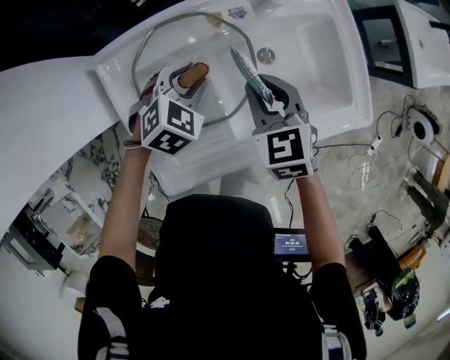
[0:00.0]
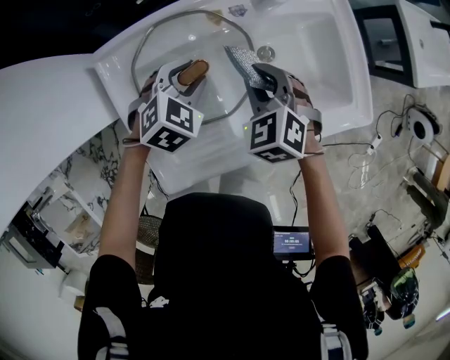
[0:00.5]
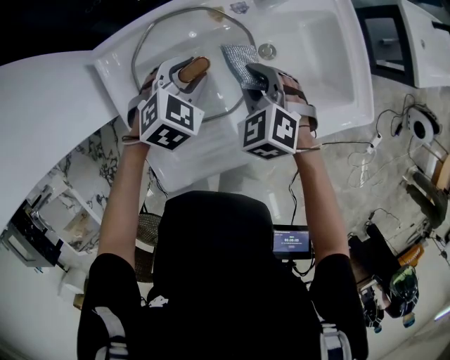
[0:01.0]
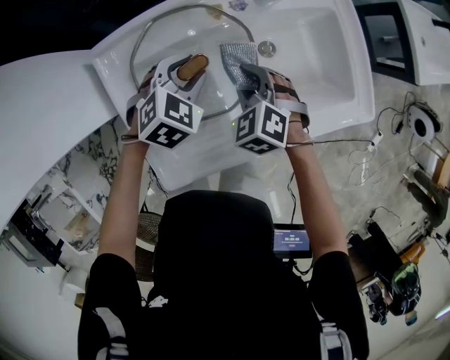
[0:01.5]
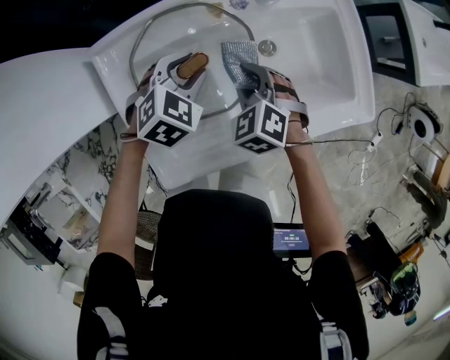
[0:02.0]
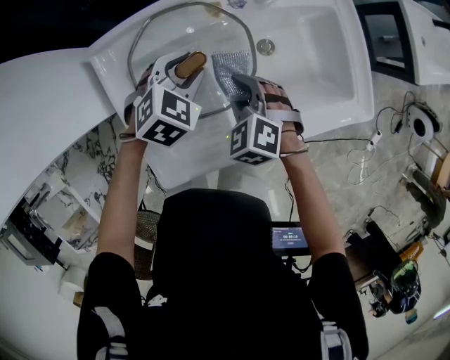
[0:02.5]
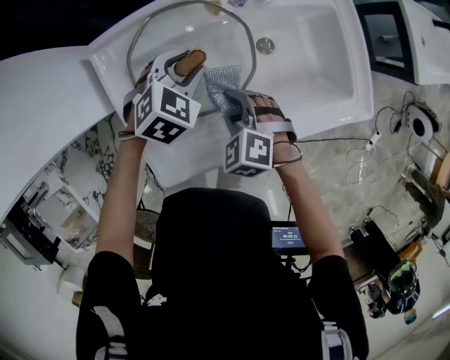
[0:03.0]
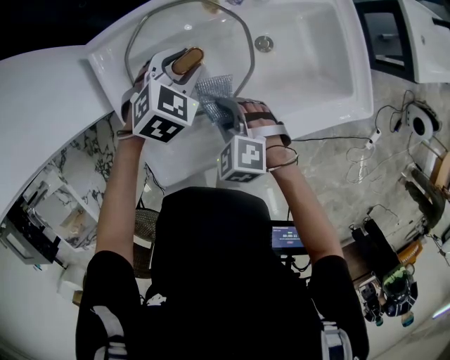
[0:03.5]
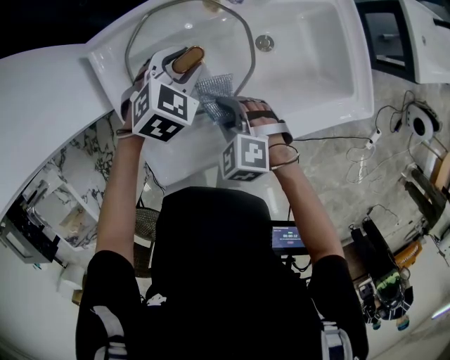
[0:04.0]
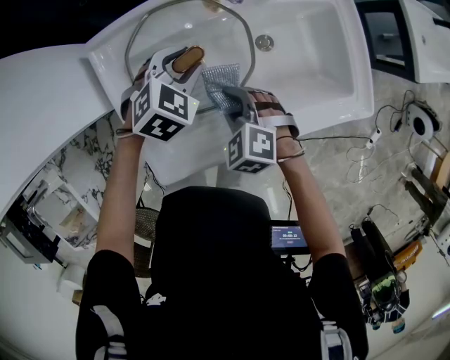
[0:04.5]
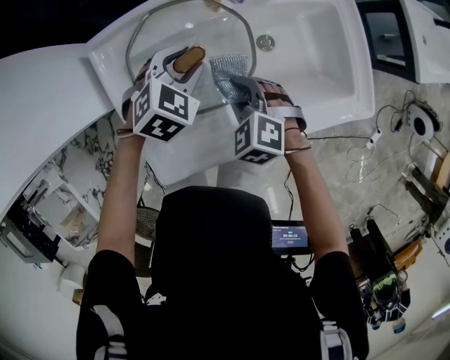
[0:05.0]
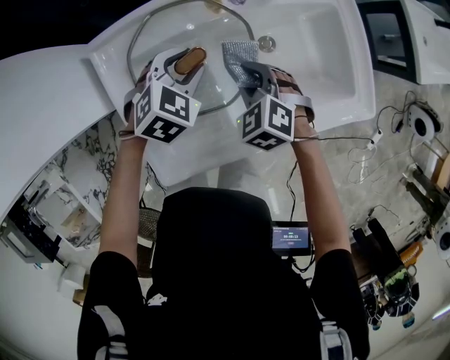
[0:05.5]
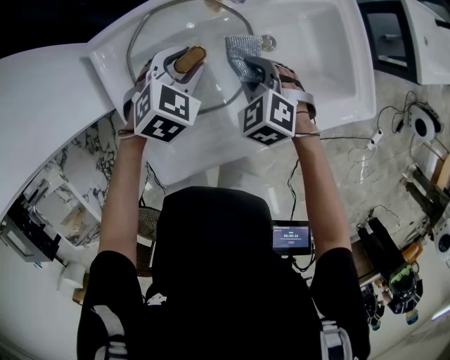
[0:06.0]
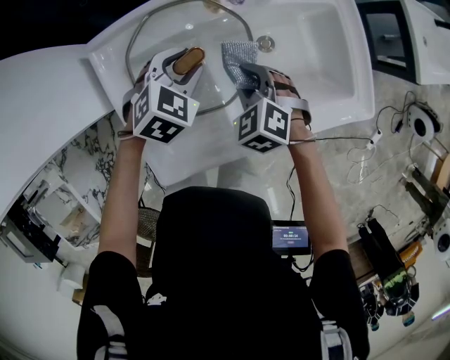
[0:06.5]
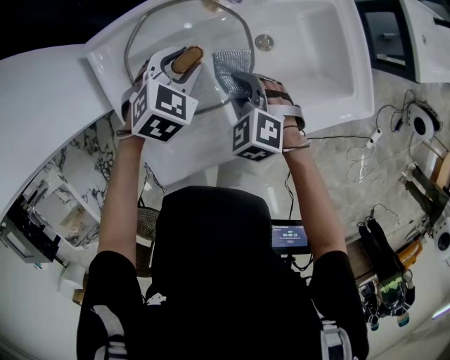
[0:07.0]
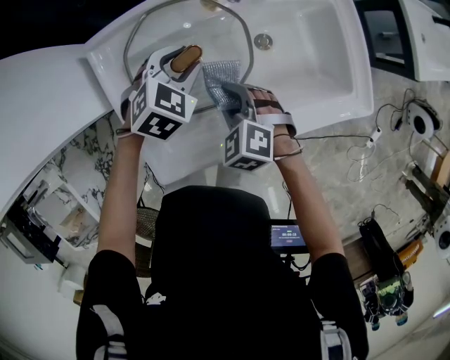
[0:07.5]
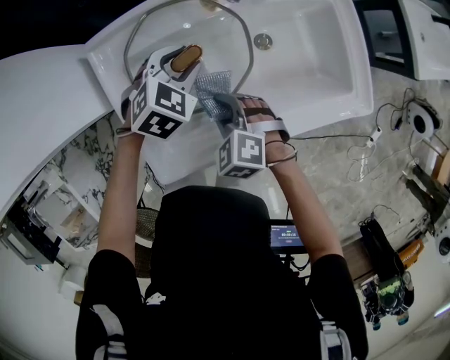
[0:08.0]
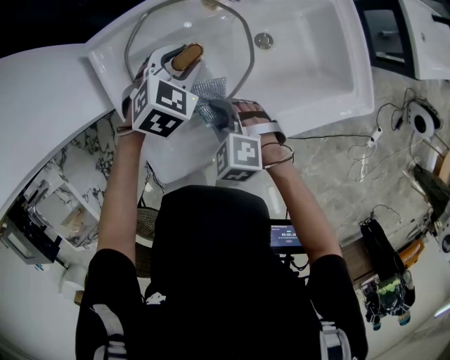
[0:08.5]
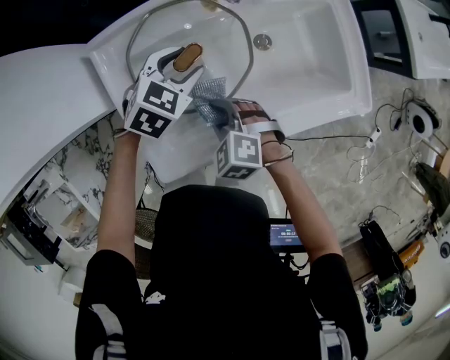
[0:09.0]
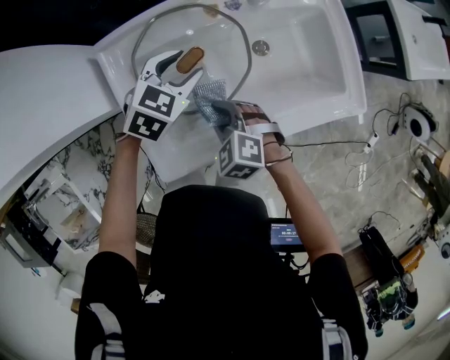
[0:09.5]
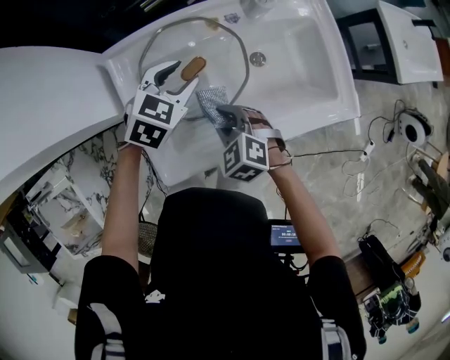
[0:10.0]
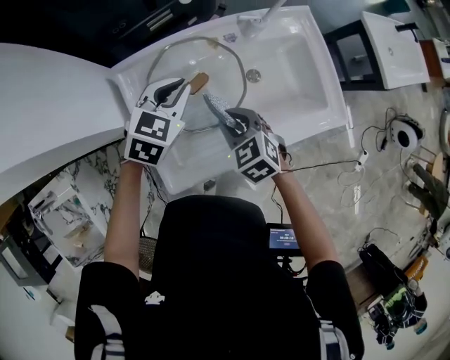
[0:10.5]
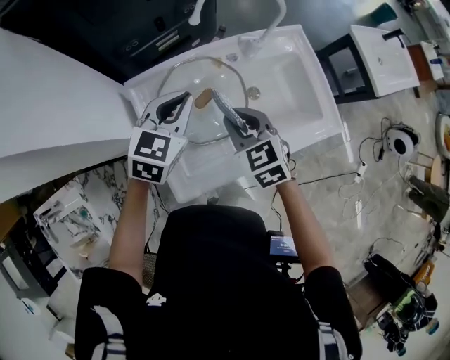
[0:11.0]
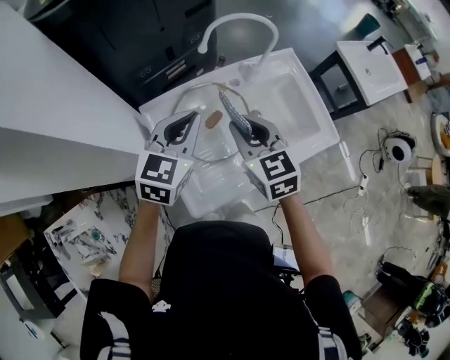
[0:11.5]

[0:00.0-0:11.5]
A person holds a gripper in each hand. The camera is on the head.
0:00.0 to 0:02.0: The right gripper moves downward, about 10 cm, and changes its angle by some 30 degrees.
0:02.0 to 0:04.0: The right gripper travels backward by some 10 cm.
0:04.0 to 0:06.0: The right gripper shifts some 10 cm forward and to the right.
0:06.0 to 0:07.5: The right gripper travels backward by about 5 cm.
0:07.5 to 0:09.5: The right gripper moves roughly 5 cm.
0:09.5 to 0:11.5: The two grippers go roughly 25 cm upward. The right gripper tips its fingers upward by about 30 degrees, while the left gripper changes its angle by approximately 30 degrees, and closes up.

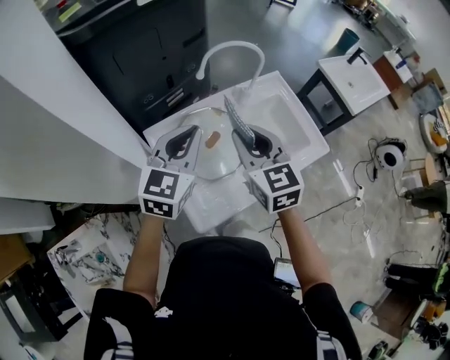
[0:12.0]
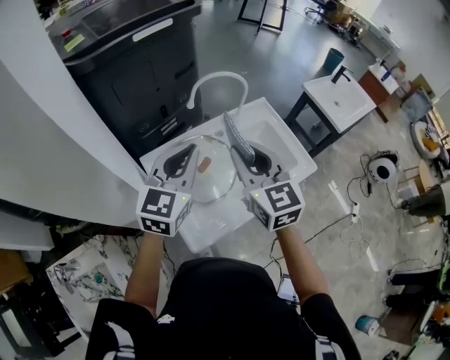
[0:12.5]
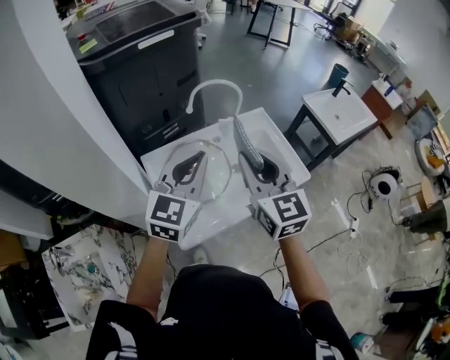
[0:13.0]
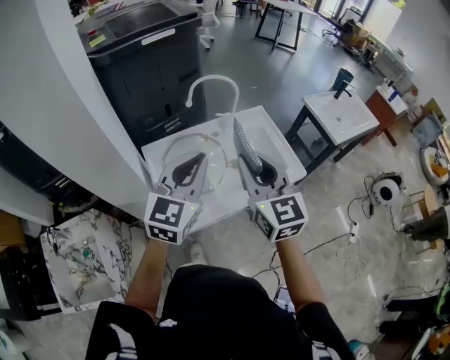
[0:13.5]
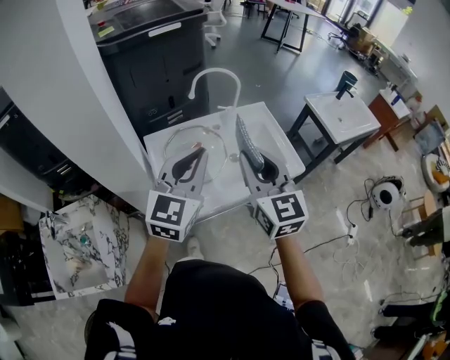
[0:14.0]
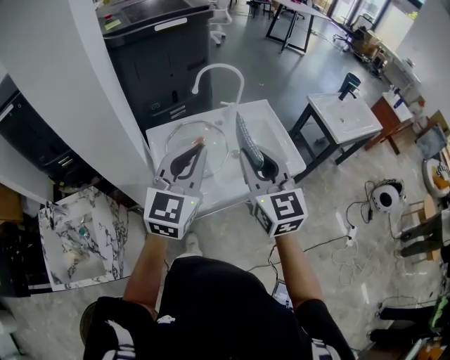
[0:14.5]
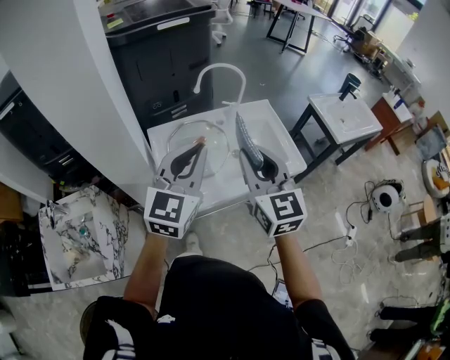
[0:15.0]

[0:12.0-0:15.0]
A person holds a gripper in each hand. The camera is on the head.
0:12.0 to 0:13.5: Both grippers travel together backward, to the right and upward, approximately 20 cm.
0:13.5 to 0:15.0: The left gripper heads backward, covering approximately 5 cm.

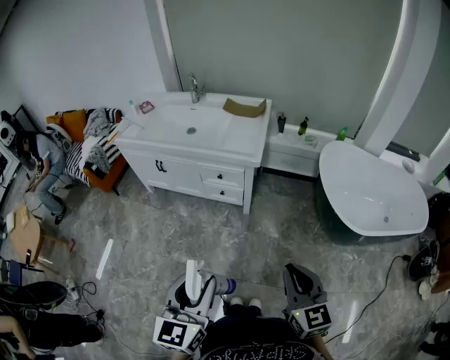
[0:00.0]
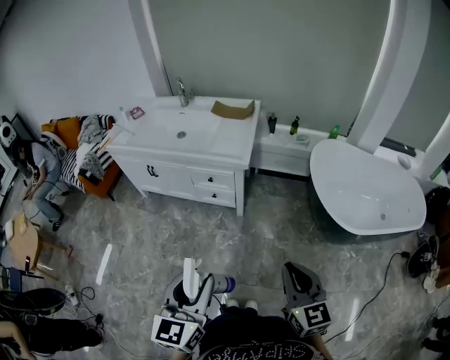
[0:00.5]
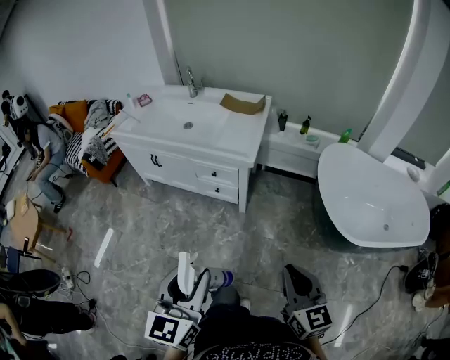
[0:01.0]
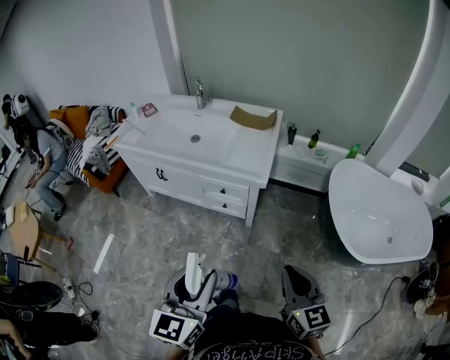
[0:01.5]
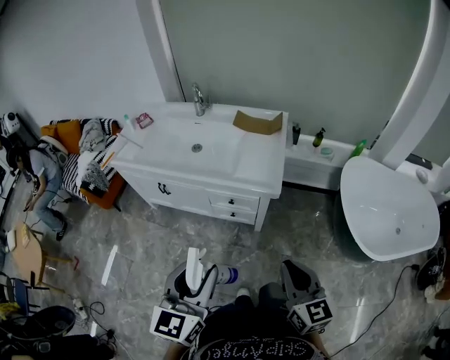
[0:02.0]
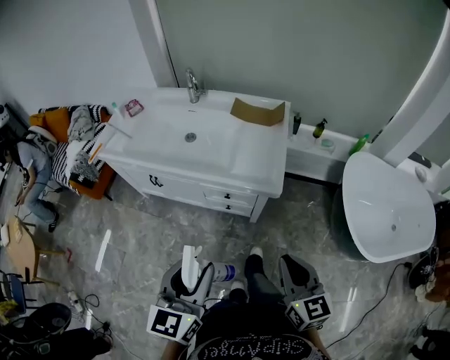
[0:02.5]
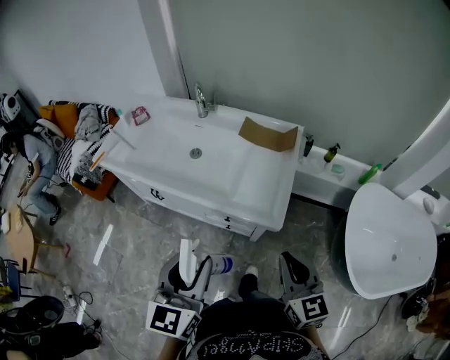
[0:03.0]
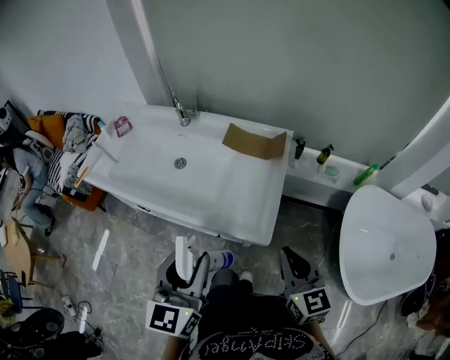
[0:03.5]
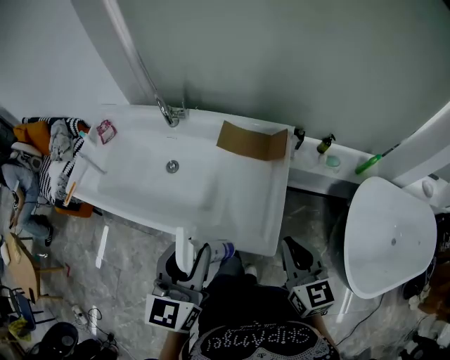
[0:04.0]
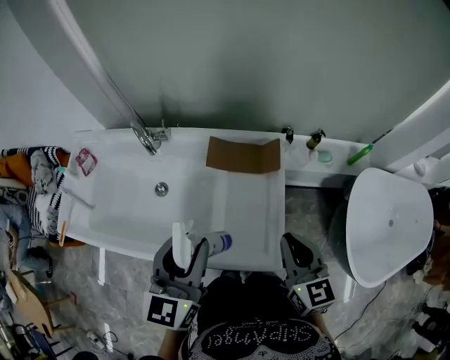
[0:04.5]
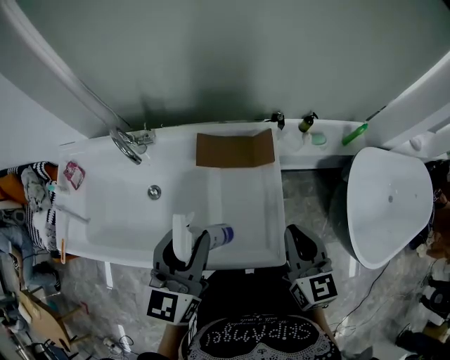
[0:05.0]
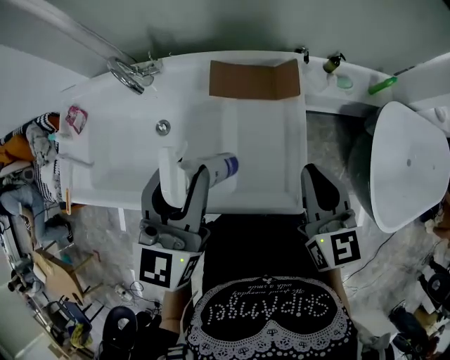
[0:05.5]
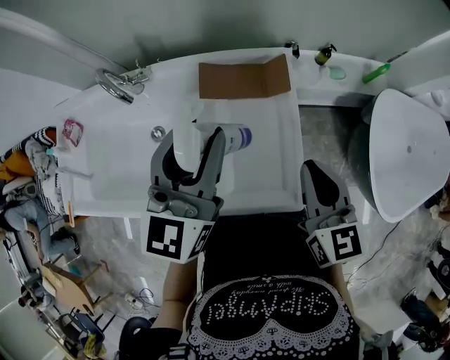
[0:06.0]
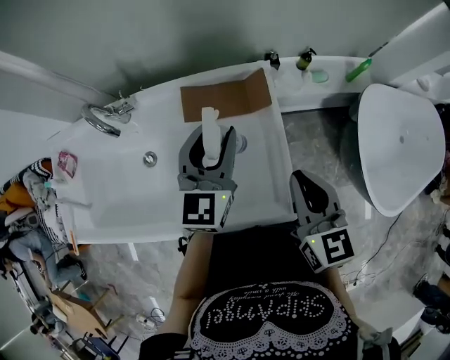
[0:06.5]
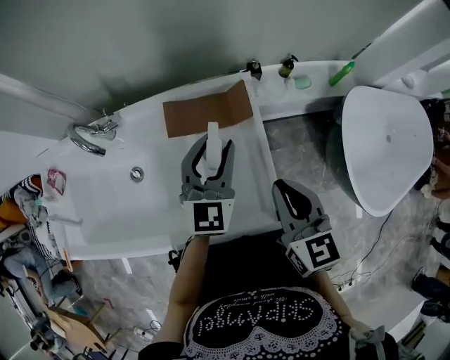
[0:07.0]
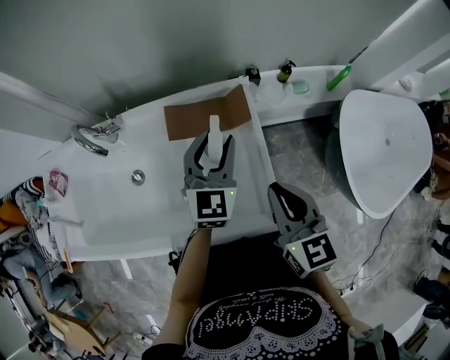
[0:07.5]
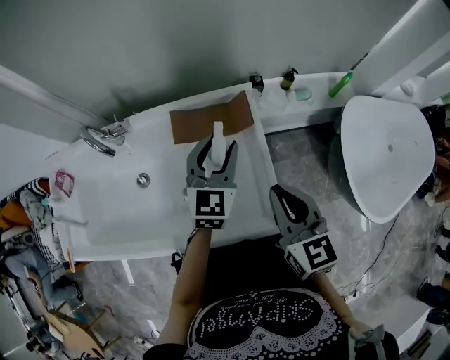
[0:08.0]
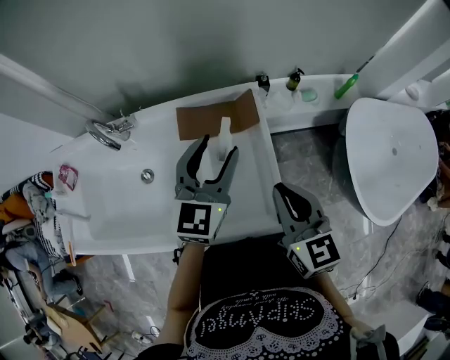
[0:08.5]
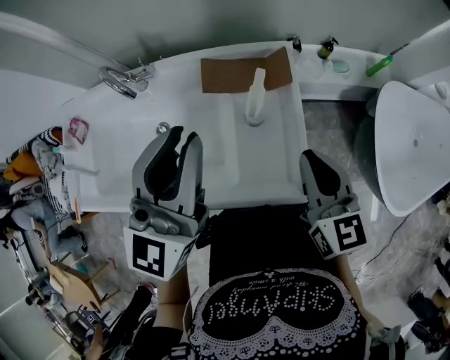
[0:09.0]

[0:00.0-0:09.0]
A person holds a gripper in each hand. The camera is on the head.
0:00.0 to 0:02.0: Both grippers travel together forward, some 20 cm.
0:02.0 to 0:04.5: Both grippers are carried forward, about 50 cm.
0:04.5 to 0:07.0: The left gripper is displaced forward, to the right and downward by approximately 25 cm, and rotates about 30 degrees.
0:07.0 to 0:09.0: The left gripper heads upward, backward and to the left, covering roughly 20 cm, and closes.

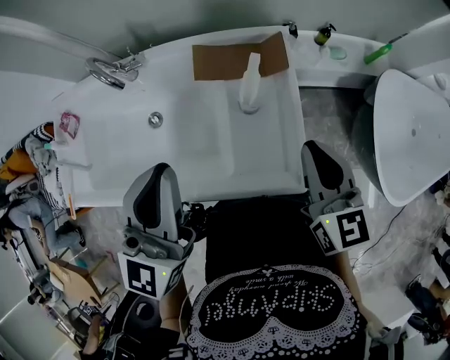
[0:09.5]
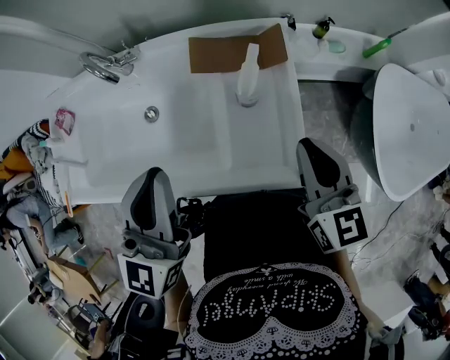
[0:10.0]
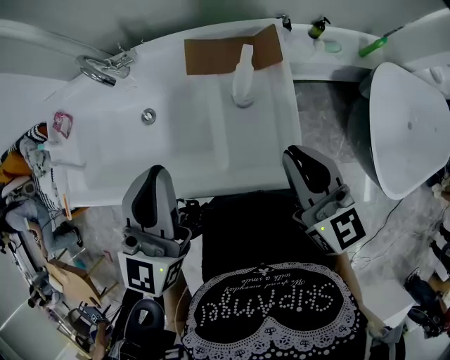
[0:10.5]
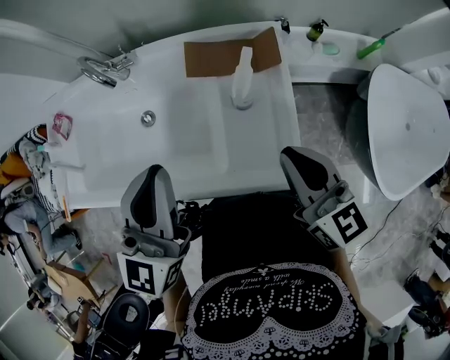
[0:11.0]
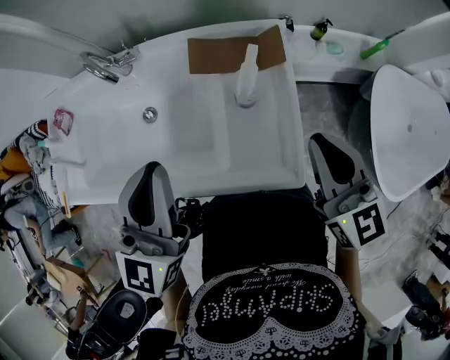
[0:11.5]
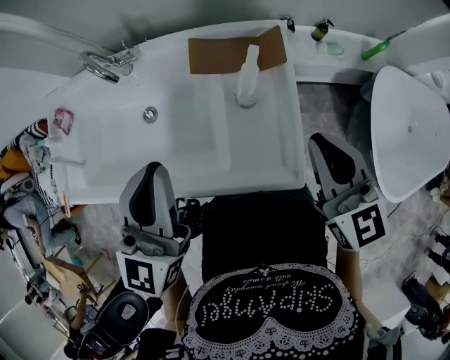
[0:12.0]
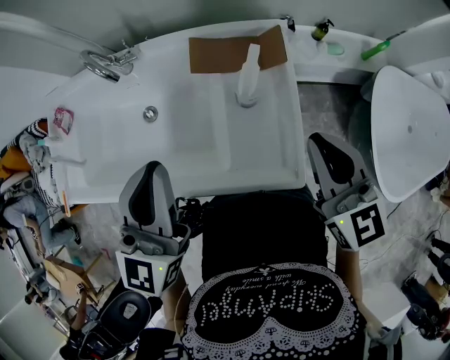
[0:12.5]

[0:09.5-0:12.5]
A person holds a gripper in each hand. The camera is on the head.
0:09.5 to 0:12.5: There are only small adjustments of the grippers.
